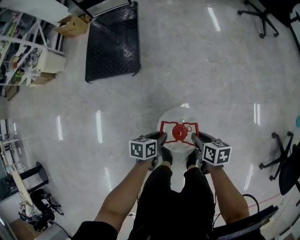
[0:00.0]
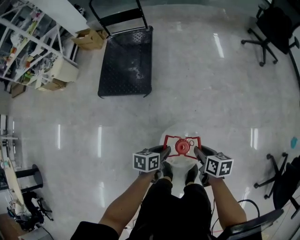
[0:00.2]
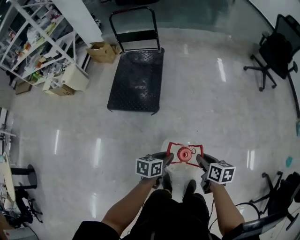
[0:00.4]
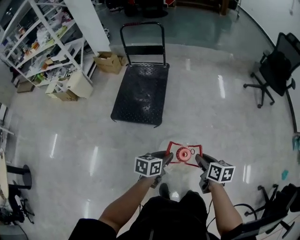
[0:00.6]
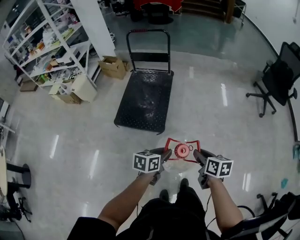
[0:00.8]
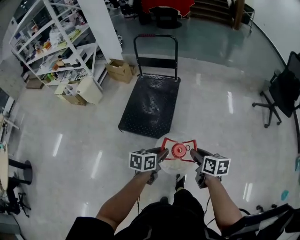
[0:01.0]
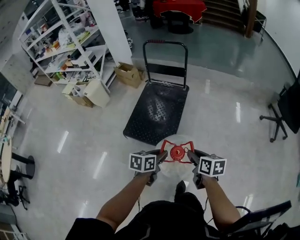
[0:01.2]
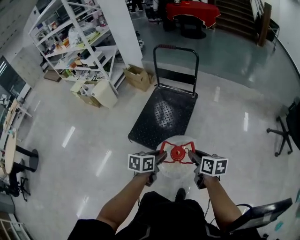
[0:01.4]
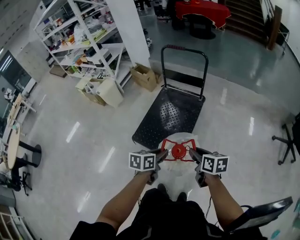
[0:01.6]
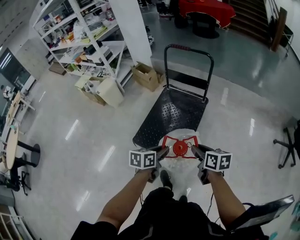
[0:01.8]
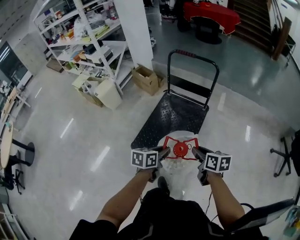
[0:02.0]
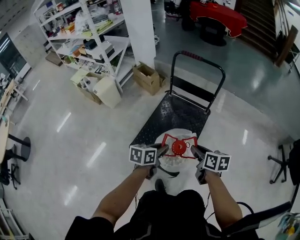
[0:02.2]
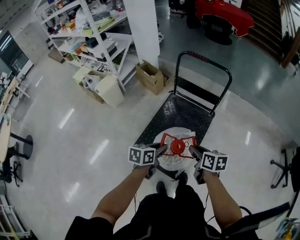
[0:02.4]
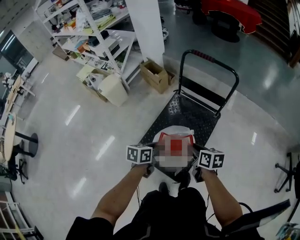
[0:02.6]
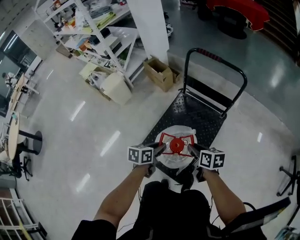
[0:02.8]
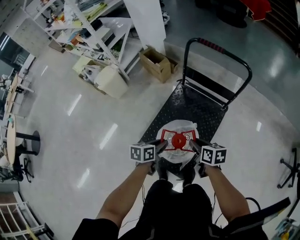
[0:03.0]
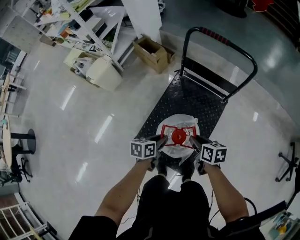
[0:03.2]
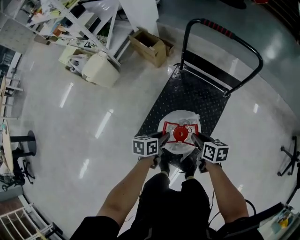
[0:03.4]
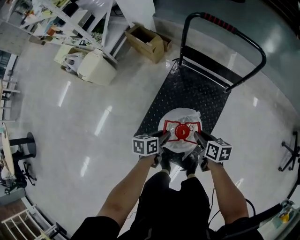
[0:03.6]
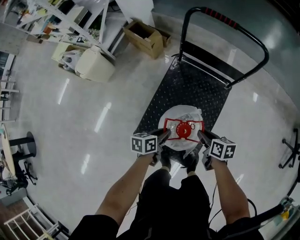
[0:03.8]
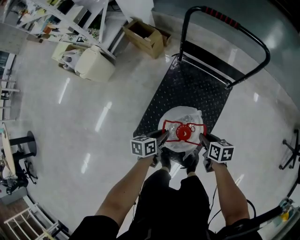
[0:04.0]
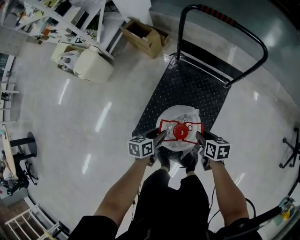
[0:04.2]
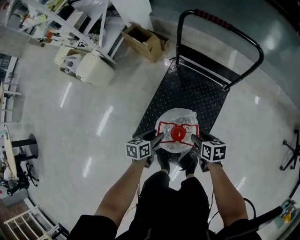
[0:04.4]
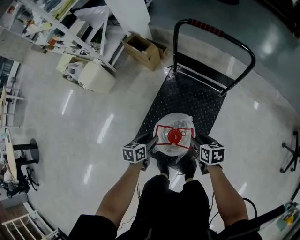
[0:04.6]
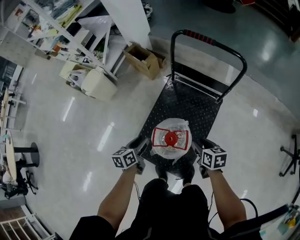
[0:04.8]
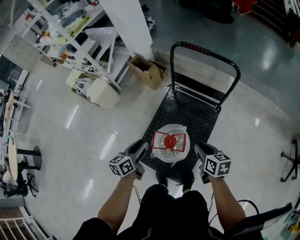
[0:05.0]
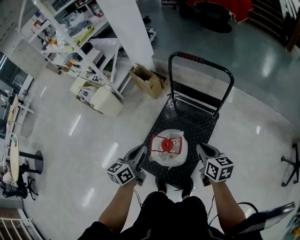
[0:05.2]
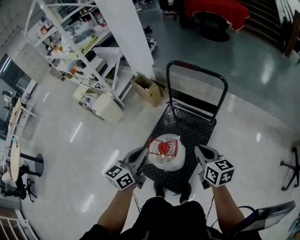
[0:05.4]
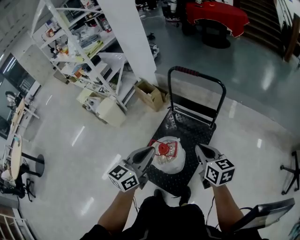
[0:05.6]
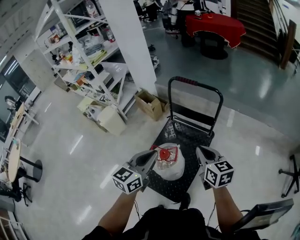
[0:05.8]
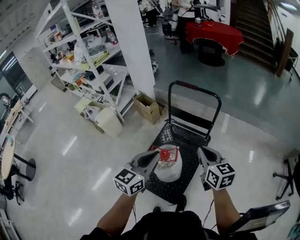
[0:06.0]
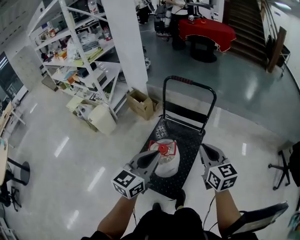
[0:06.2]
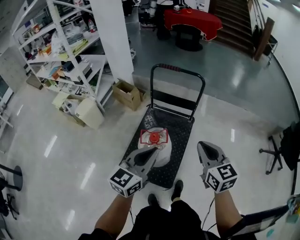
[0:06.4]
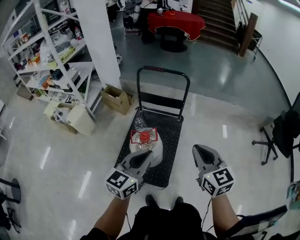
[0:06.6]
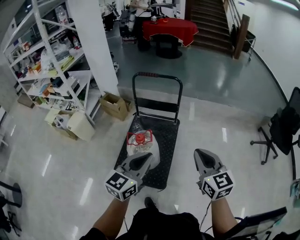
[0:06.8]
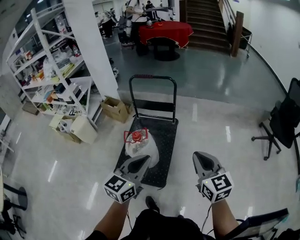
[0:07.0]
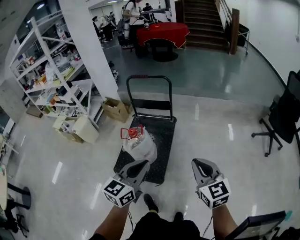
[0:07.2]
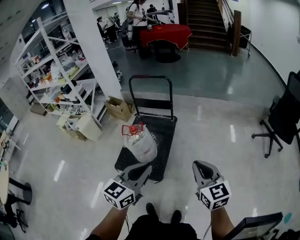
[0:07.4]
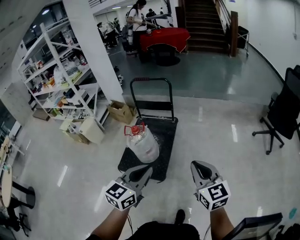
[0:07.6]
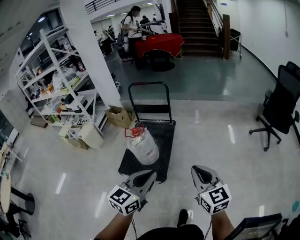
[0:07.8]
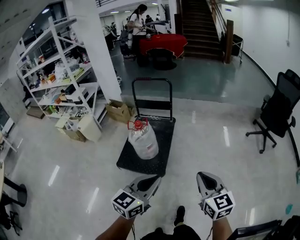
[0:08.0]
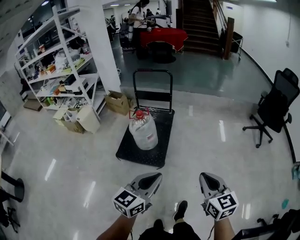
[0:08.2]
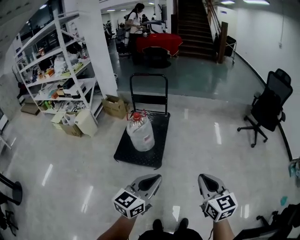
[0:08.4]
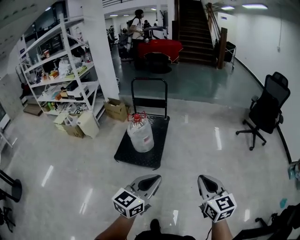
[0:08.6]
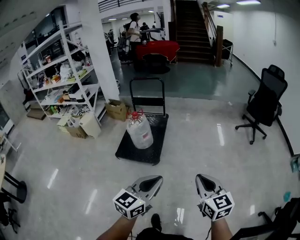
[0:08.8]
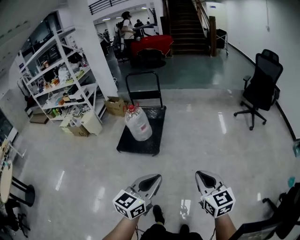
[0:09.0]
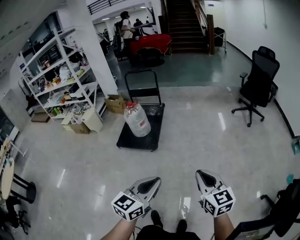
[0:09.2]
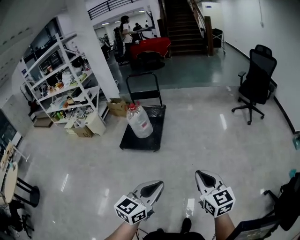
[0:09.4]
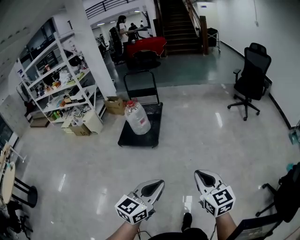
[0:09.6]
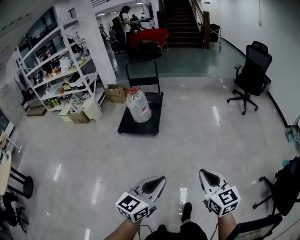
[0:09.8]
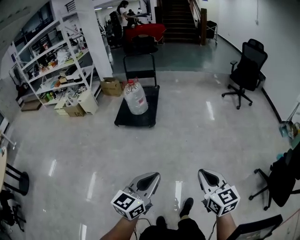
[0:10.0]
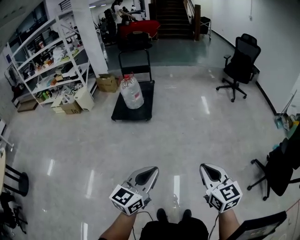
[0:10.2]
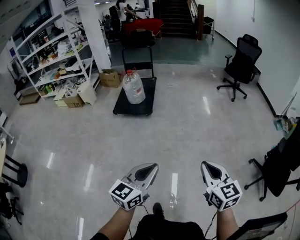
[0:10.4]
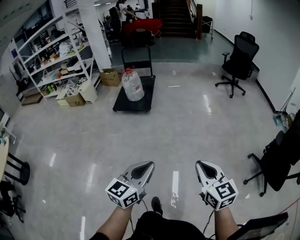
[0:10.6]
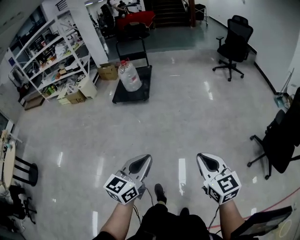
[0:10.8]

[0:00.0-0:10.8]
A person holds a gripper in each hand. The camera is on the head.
0:00.0 to 0:01.6: The two grippers travel together, approximately 50 cm. The right gripper rotates about 30 degrees; the left gripper changes its angle by some 30 degrees.
0:01.6 to 0:03.0: The two grippers travel together, forward, approximately 40 cm.
0:03.0 to 0:04.6: The right gripper goes approximately 10 cm downward, and opens; the left gripper heads downward and forward, covering some 10 cm, and opens its fingers.
0:04.6 to 0:06.2: The right gripper goes some 40 cm upward, tips its fingers upward by roughly 40 degrees, and closes up, while the left gripper travels upward and backward by some 40 cm, angles its fingers upward, by roughly 40 degrees, and closes its fingers.
0:06.2 to 0:07.8: Both grippers are carried backward and to the right, roughly 50 cm.
0:07.8 to 0:09.2: The pair of grippers is taken backward, approximately 50 cm.
0:09.2 to 0:10.8: The pair of grippers is taken backward, some 50 cm.

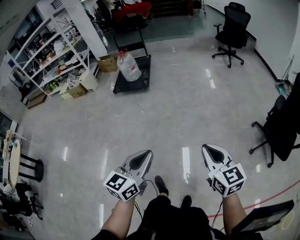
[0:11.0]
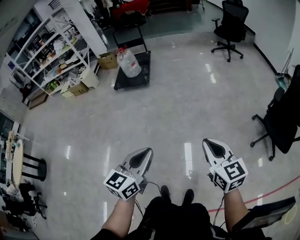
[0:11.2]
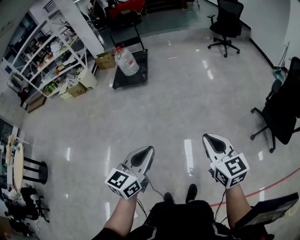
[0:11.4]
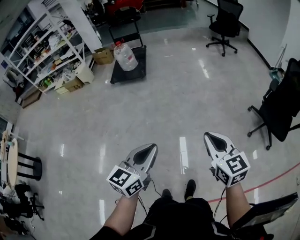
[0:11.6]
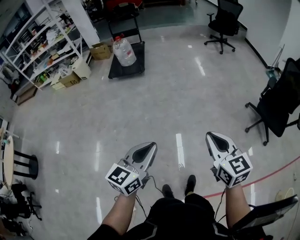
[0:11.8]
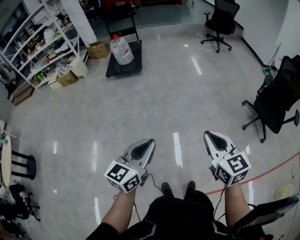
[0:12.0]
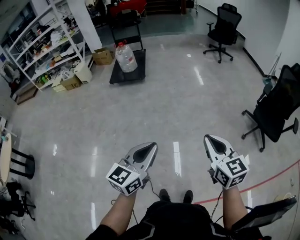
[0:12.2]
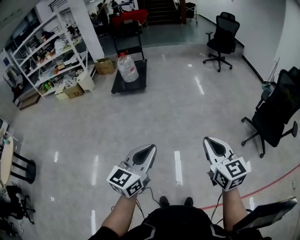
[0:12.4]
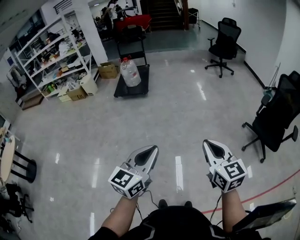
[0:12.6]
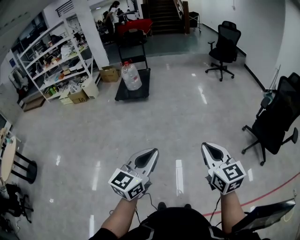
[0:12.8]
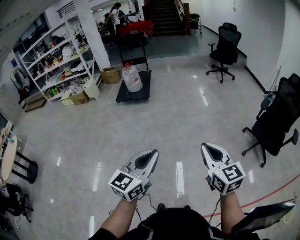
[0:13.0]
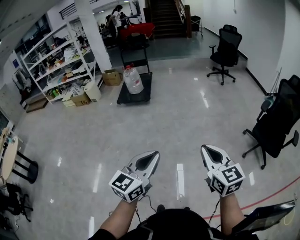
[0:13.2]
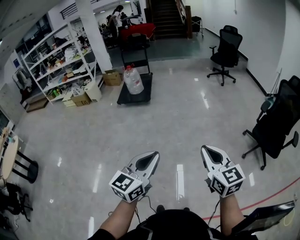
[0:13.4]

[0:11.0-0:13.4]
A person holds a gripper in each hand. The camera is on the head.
0:11.0 to 0:12.2: The two grippers go roughly 20 cm backward and to the left.
0:12.2 to 0:13.4: The right gripper shifts by approximately 5 cm. The left gripper is displaced to the right and upward by roughly 10 cm.

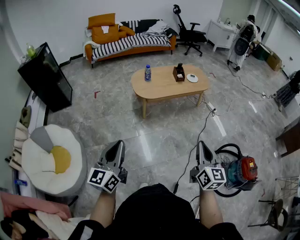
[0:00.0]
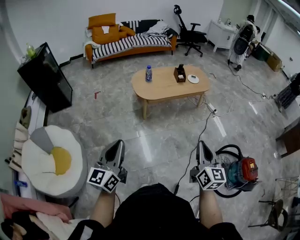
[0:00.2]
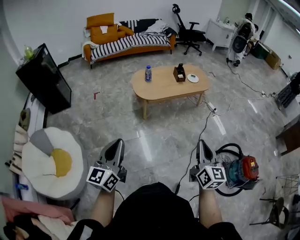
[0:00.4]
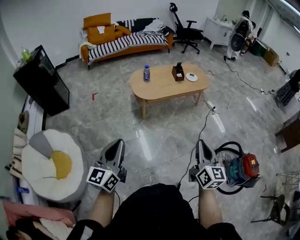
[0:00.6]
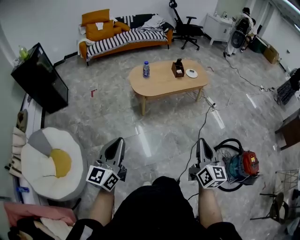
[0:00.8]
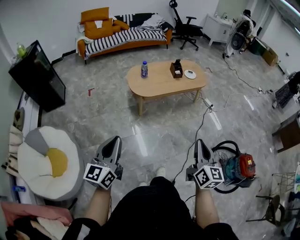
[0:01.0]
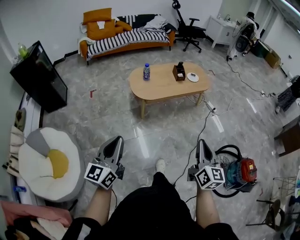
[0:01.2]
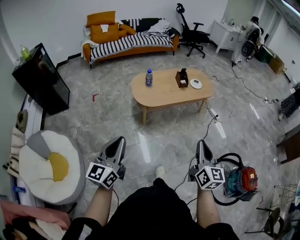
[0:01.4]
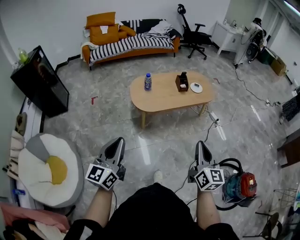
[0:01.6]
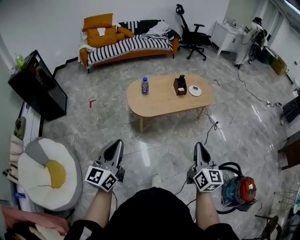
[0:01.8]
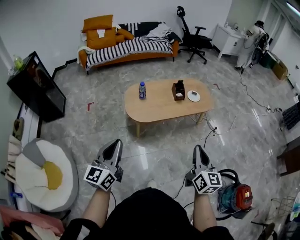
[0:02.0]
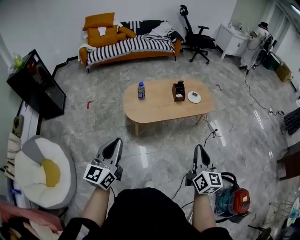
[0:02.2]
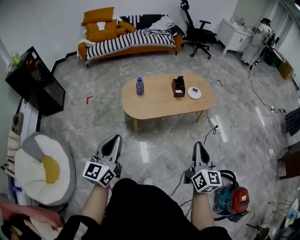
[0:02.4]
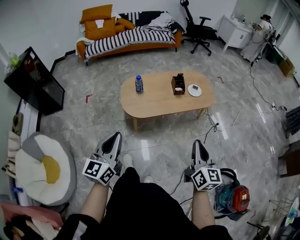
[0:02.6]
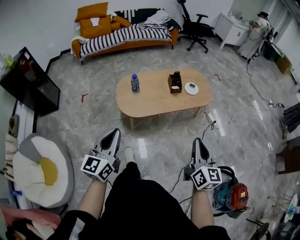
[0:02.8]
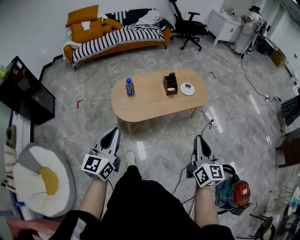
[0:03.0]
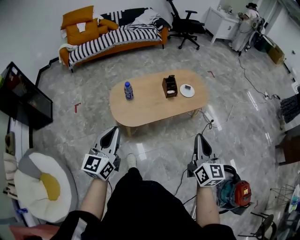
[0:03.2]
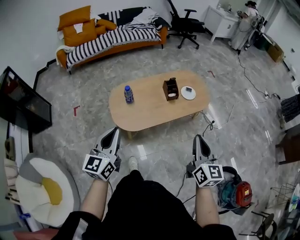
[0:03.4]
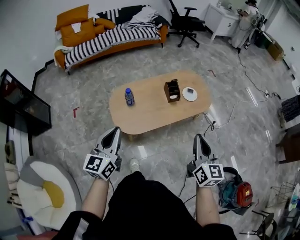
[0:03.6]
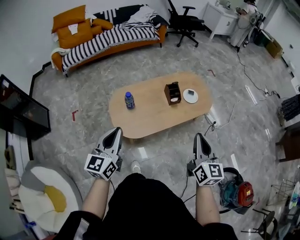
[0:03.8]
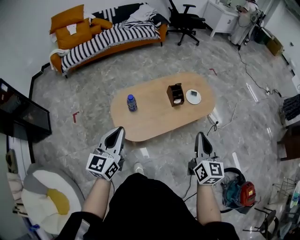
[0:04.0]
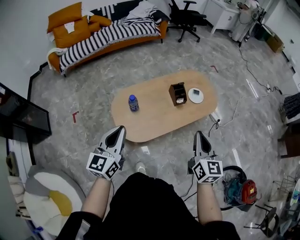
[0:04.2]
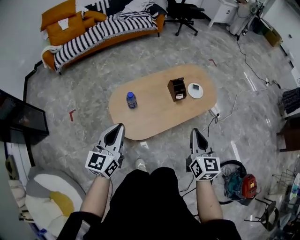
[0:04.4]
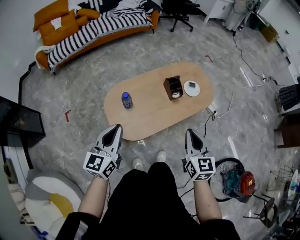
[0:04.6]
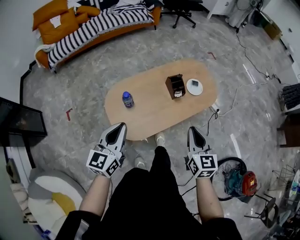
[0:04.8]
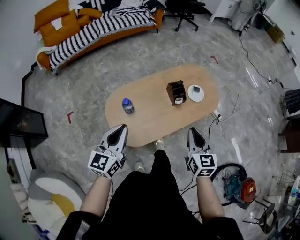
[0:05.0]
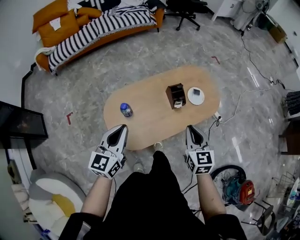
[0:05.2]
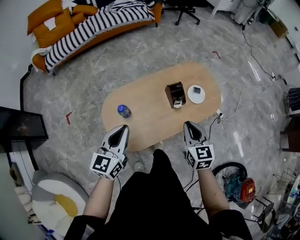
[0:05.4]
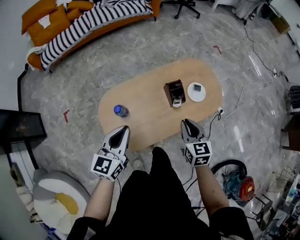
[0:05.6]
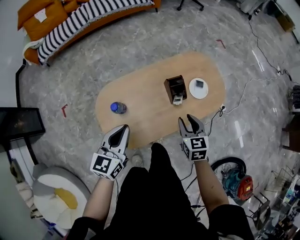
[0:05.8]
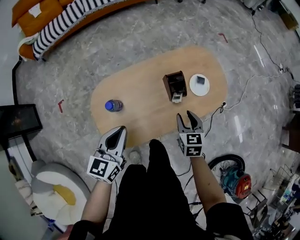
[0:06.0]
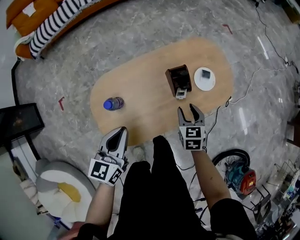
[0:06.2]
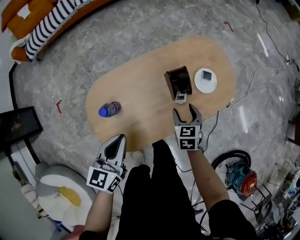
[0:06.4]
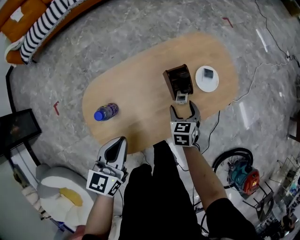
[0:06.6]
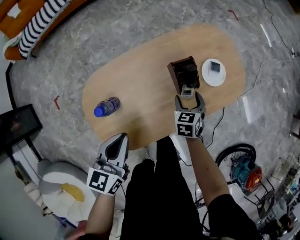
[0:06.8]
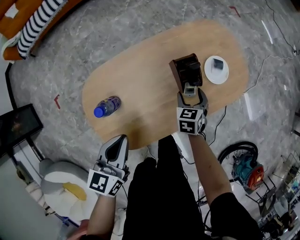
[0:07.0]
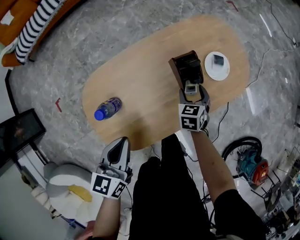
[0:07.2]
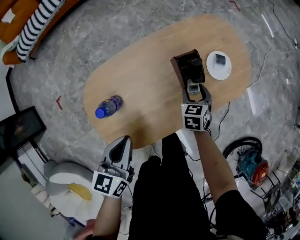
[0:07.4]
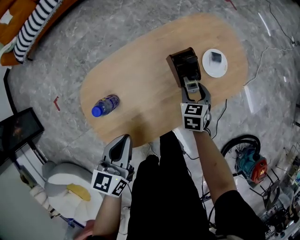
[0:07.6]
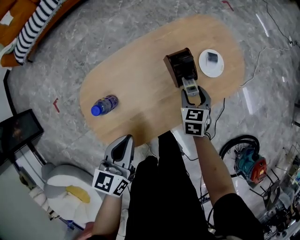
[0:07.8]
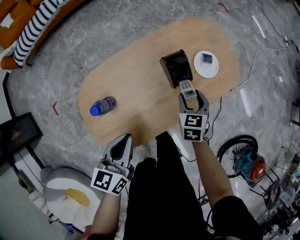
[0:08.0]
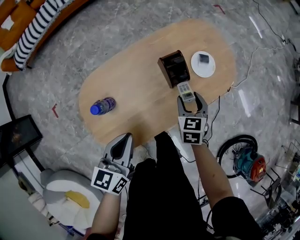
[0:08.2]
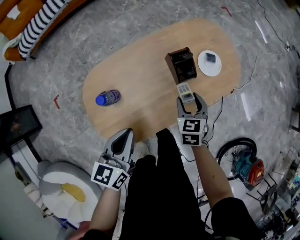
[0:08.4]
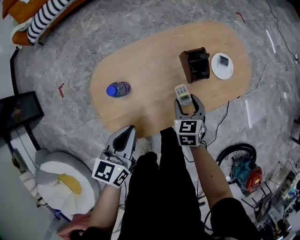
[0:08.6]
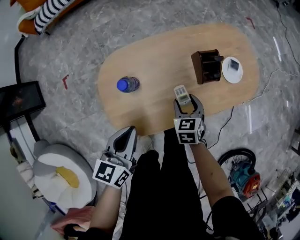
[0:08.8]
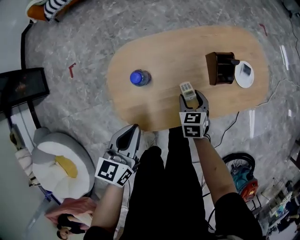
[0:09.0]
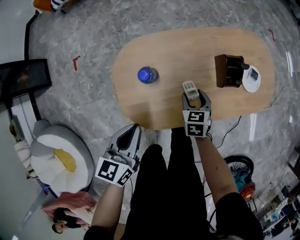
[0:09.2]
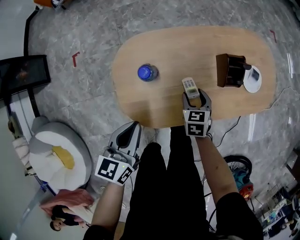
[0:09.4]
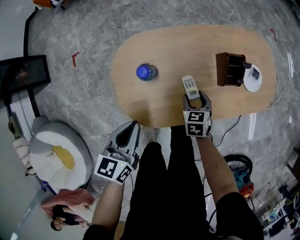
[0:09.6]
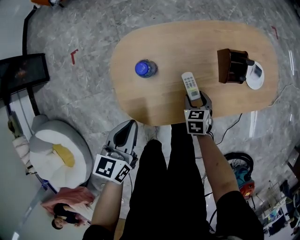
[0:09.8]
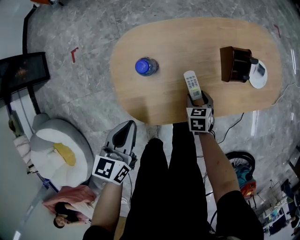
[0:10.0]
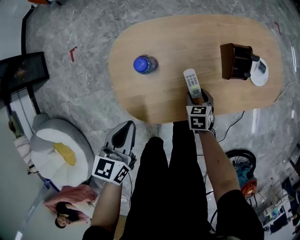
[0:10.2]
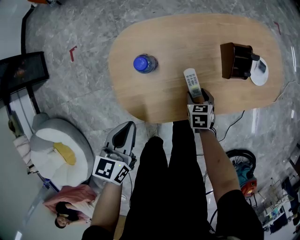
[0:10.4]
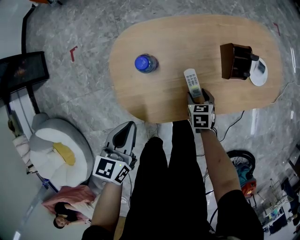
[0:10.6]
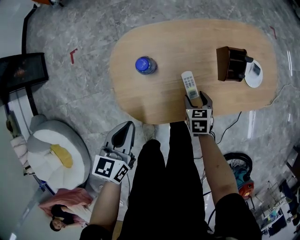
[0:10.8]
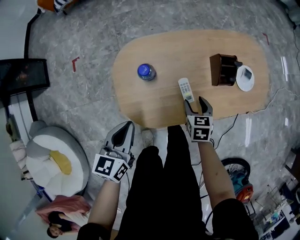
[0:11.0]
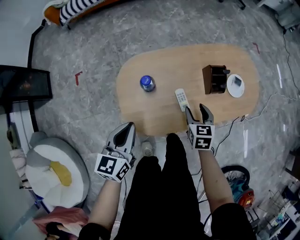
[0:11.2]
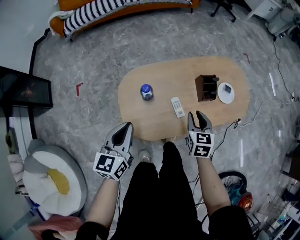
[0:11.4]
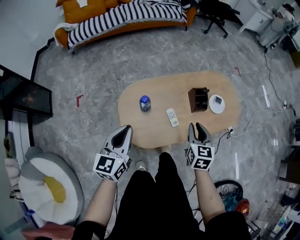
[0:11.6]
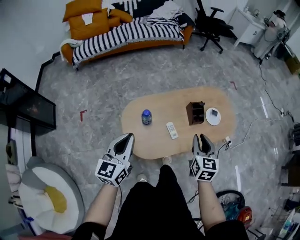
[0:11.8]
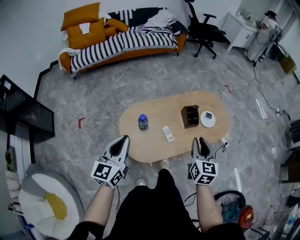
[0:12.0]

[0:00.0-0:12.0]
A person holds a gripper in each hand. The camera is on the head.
0:00.0 to 0:01.6: Both grippers move forward, roughly 20 cm.
0:01.6 to 0:03.0: Both grippers move forward, some 25 cm.
0:03.0 to 0:04.4: Both grippers travel together forward and to the left, roughly 25 cm.
0:04.4 to 0:06.0: The grippers both shift forward and downward by some 30 cm. The right gripper changes its angle by about 30 degrees, and opens up.
0:06.0 to 0:07.6: The left gripper shifts roughly 10 cm downward, while the right gripper heads downward and forward, covering roughly 20 cm.
0:07.6 to 0:09.0: The right gripper travels to the left and backward by approximately 20 cm, and turns by roughly 20 degrees, while the left gripper moves backward and to the left, approximately 10 cm.
0:09.0 to 0:10.4: The right gripper travels downward by approximately 10 cm, while the left gripper is displaced downward by approximately 5 cm.
0:10.4 to 0:12.0: The right gripper heads upward, covering roughly 50 cm, tips its fingers upward by roughly 40 degrees, and closes; the left gripper shifts approximately 30 cm upward, and swivels approximately 30 degrees.
